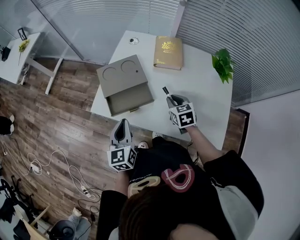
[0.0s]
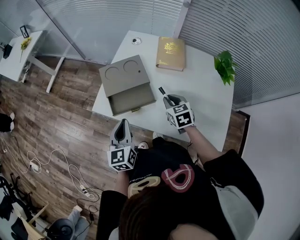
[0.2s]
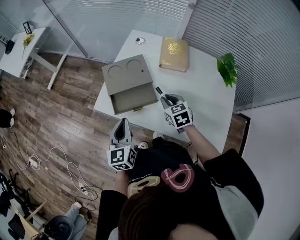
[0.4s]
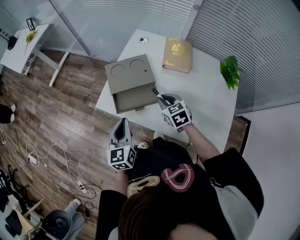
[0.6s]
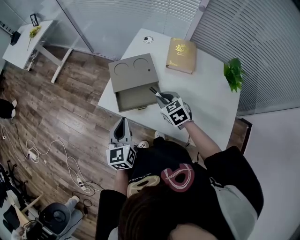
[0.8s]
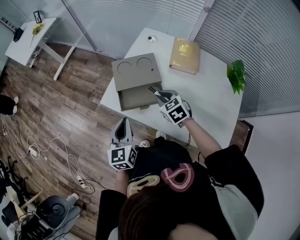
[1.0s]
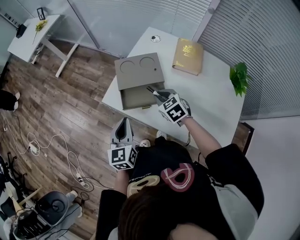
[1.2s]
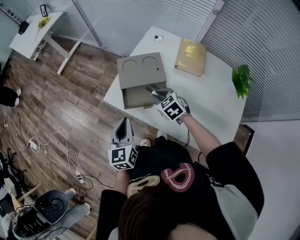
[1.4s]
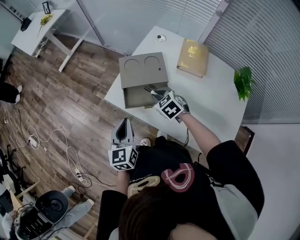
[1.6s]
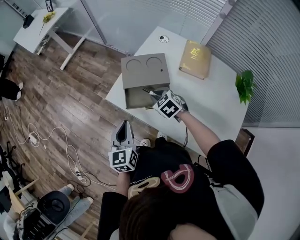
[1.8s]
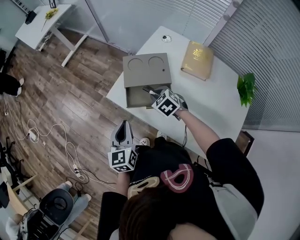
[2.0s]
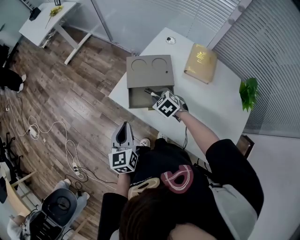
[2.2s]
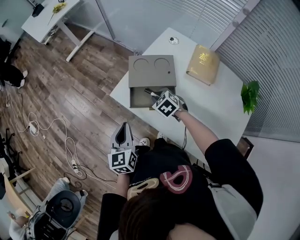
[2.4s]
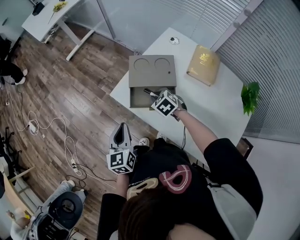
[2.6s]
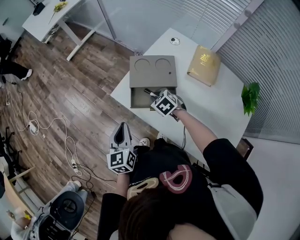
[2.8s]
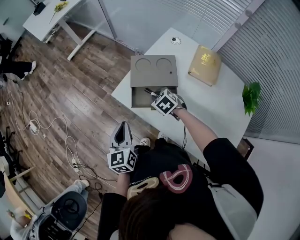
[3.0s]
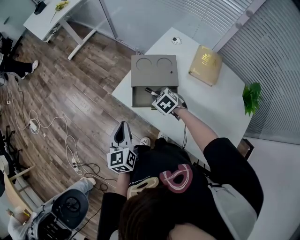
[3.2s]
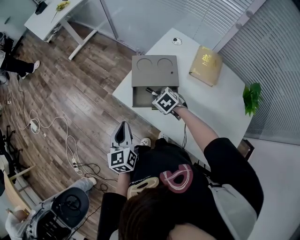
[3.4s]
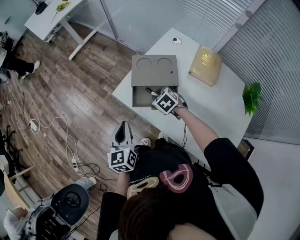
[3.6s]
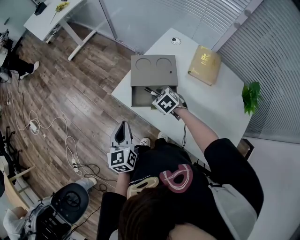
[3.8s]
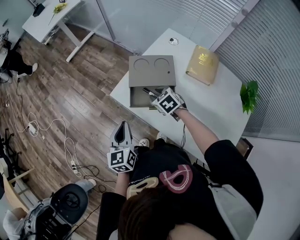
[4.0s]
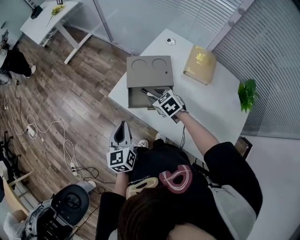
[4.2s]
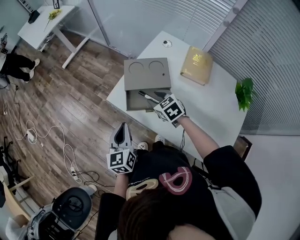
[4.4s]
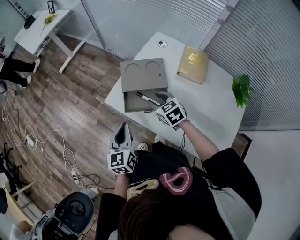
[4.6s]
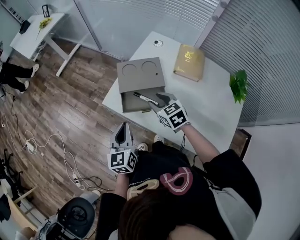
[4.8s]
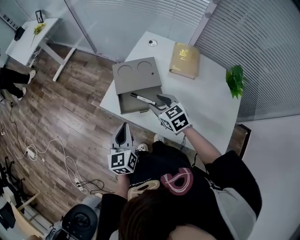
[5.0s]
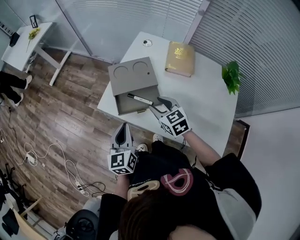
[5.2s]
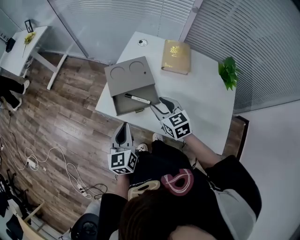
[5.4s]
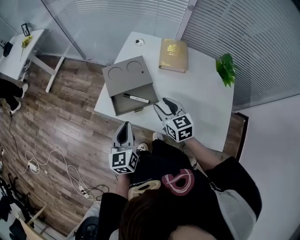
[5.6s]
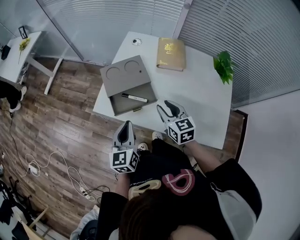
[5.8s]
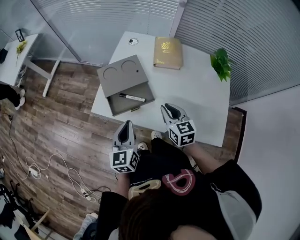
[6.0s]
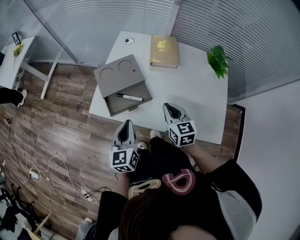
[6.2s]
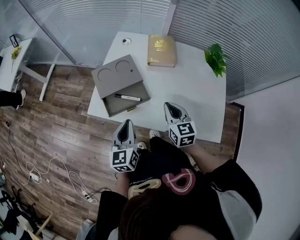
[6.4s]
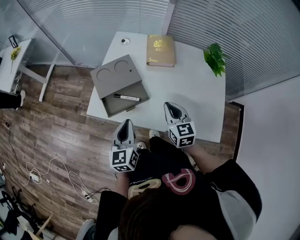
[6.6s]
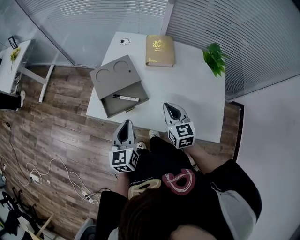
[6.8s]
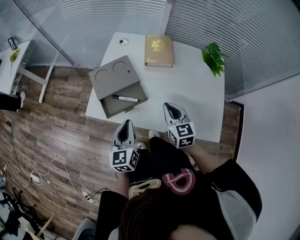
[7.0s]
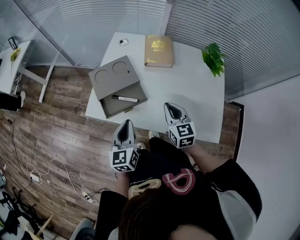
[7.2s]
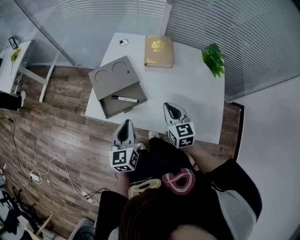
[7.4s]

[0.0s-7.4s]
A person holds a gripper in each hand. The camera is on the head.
0.0s to 1.4s: The left gripper is displaced to the left by some 5 cm, while the right gripper goes approximately 15 cm to the left, and turns by some 30 degrees.
1.4s to 3.0s: The right gripper goes about 5 cm downward.
3.0s to 4.4s: The right gripper heads upward, covering roughly 5 cm, and opens its fingers.
4.4s to 6.0s: The left gripper moves some 5 cm, and turns by some 20 degrees. The right gripper ends up about 15 cm from where it was, rotates some 40 degrees, and closes.
6.0s to 7.4s: There are only small adjustments of the grippers.

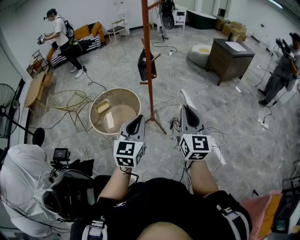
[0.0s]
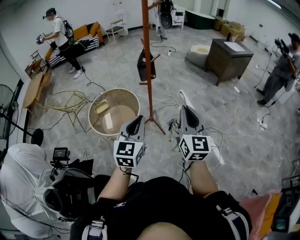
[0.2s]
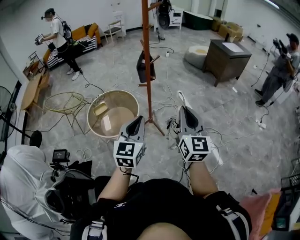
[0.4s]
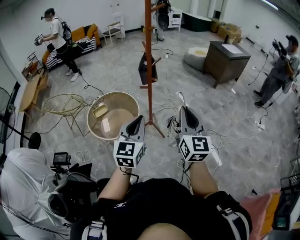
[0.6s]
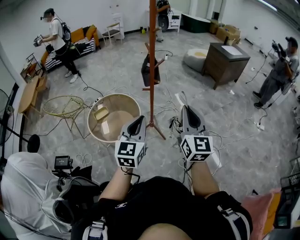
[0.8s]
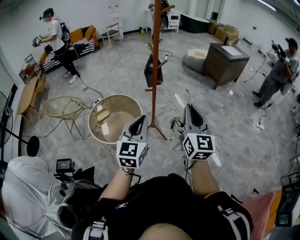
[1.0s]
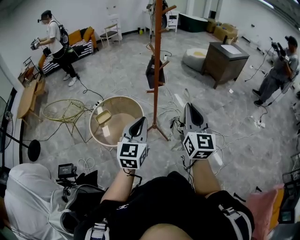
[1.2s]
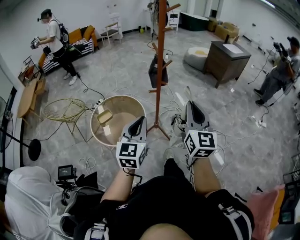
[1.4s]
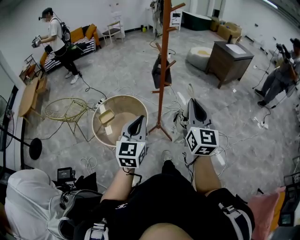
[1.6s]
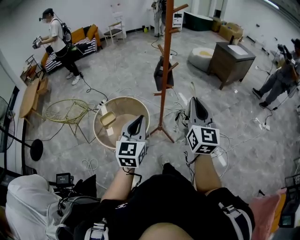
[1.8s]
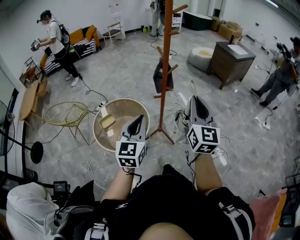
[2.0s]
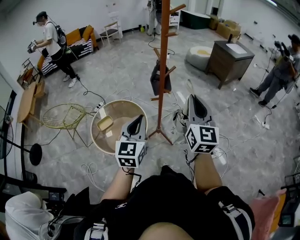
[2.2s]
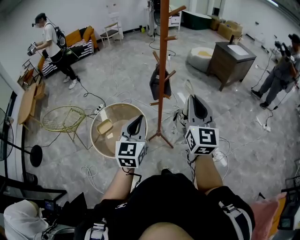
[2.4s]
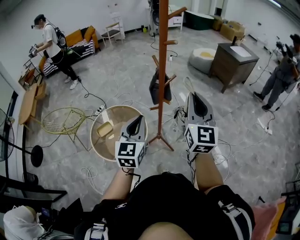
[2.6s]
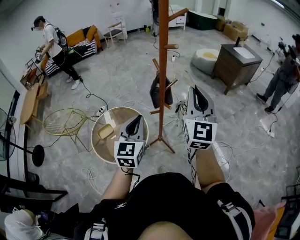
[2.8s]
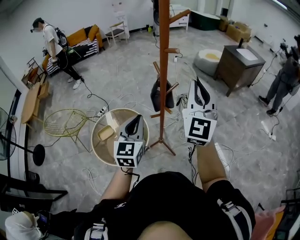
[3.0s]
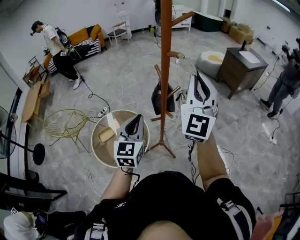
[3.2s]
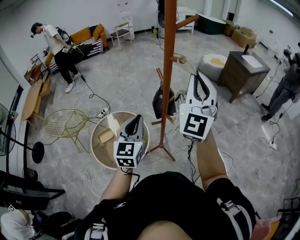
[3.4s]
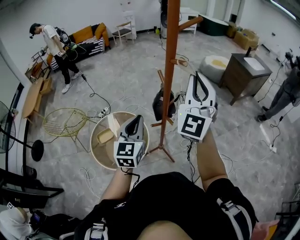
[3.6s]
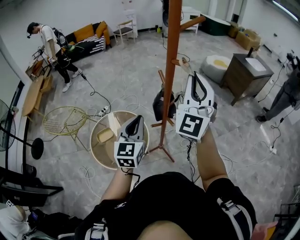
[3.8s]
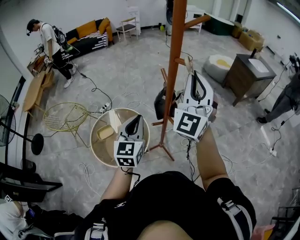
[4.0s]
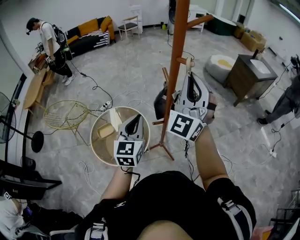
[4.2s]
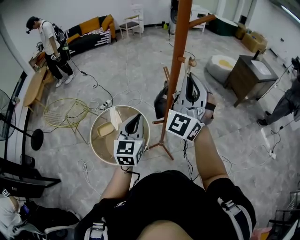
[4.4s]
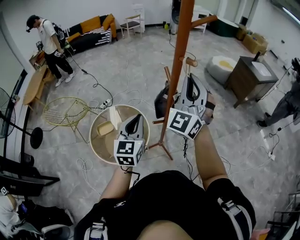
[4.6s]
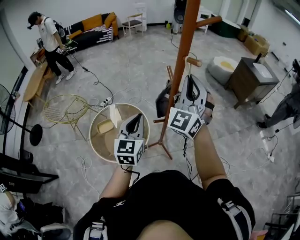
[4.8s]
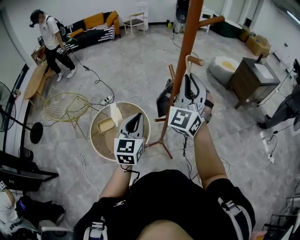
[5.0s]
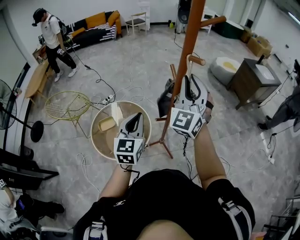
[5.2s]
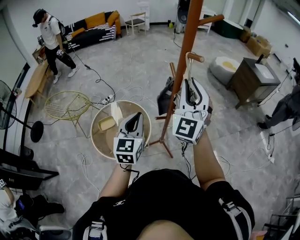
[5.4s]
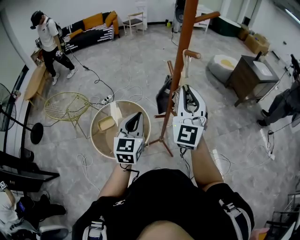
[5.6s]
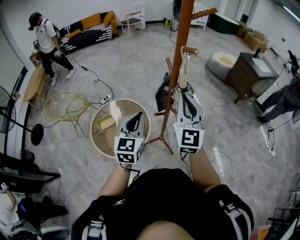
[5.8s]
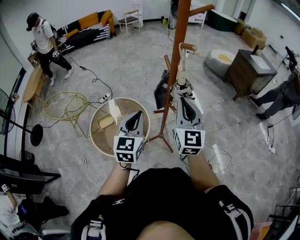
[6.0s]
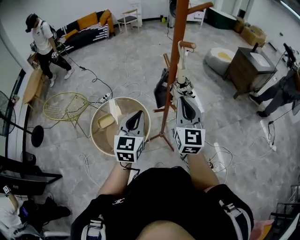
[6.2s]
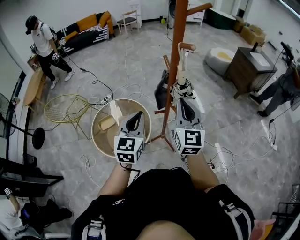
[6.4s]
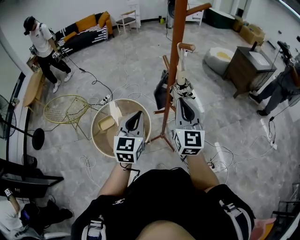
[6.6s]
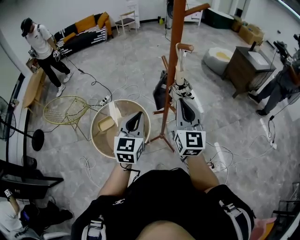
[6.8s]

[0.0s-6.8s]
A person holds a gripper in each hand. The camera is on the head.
0.0s to 1.4s: Both grippers move to the left and forward, some 20 cm.
1.4s to 2.8s: Both grippers travel together forward, some 30 cm.
2.8s to 4.0s: The two grippers go approximately 15 cm forward. The right gripper rotates roughly 20 degrees.
4.0s to 5.4s: The right gripper changes place by about 5 cm.
5.4s to 6.8s: The right gripper shifts approximately 10 cm downward and backward, and swivels roughly 30 degrees.

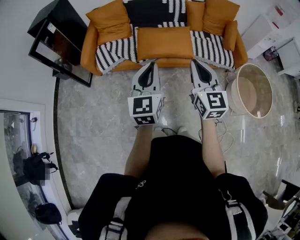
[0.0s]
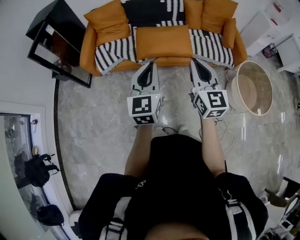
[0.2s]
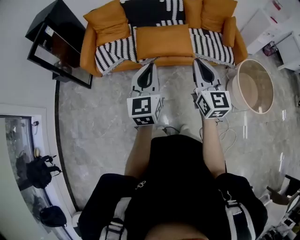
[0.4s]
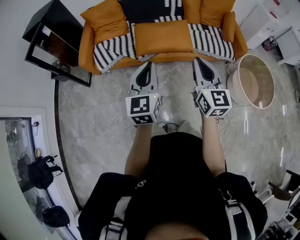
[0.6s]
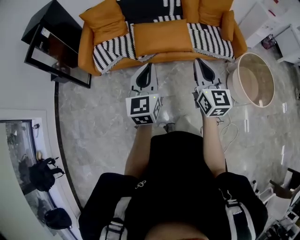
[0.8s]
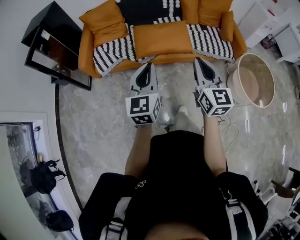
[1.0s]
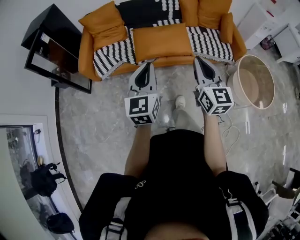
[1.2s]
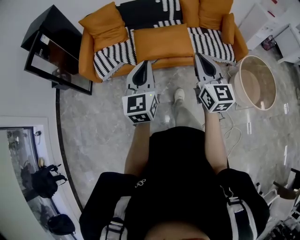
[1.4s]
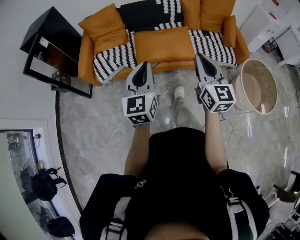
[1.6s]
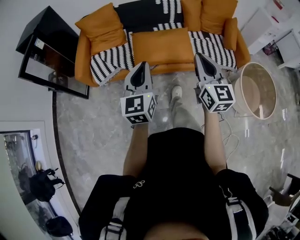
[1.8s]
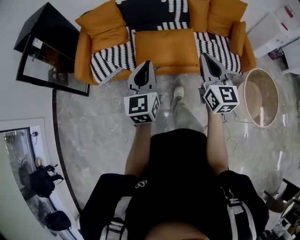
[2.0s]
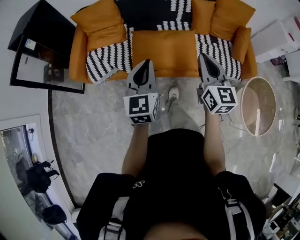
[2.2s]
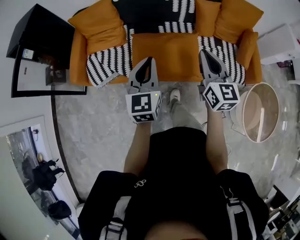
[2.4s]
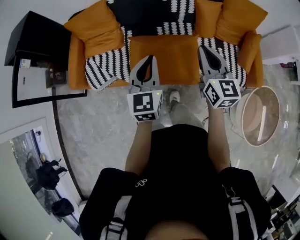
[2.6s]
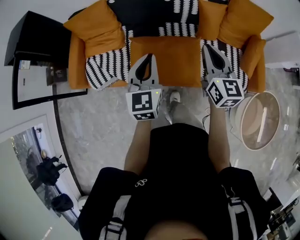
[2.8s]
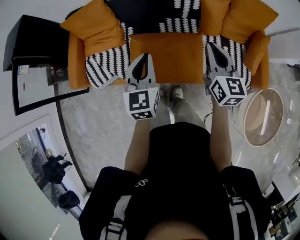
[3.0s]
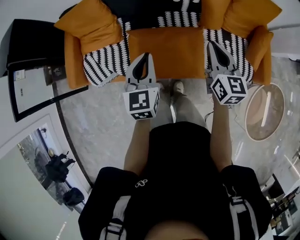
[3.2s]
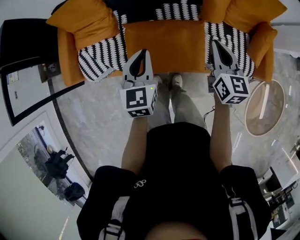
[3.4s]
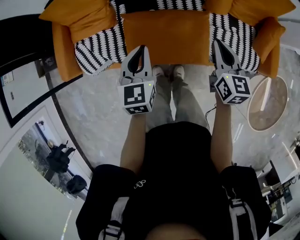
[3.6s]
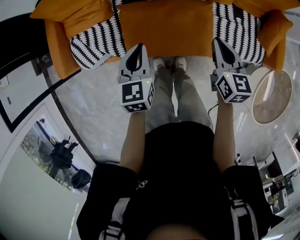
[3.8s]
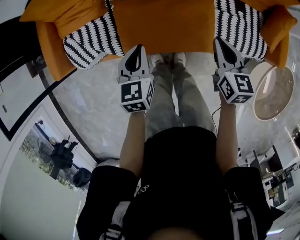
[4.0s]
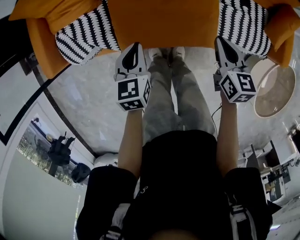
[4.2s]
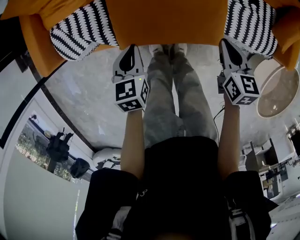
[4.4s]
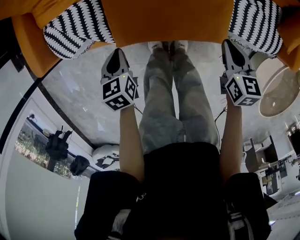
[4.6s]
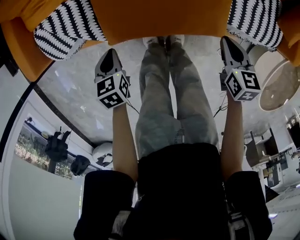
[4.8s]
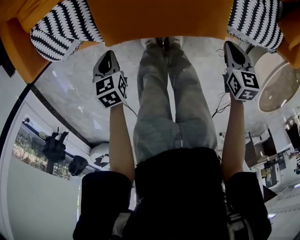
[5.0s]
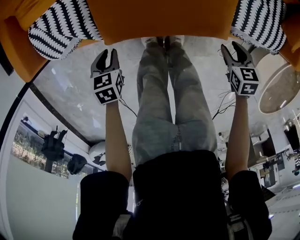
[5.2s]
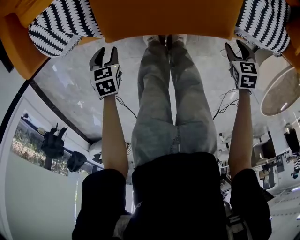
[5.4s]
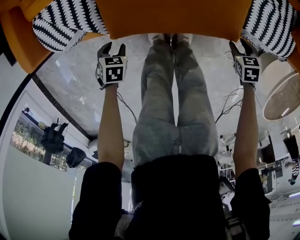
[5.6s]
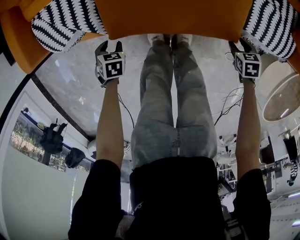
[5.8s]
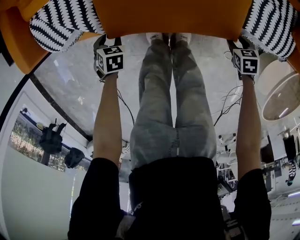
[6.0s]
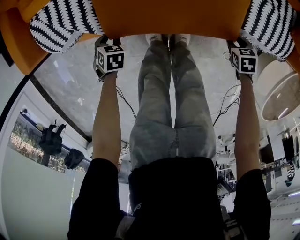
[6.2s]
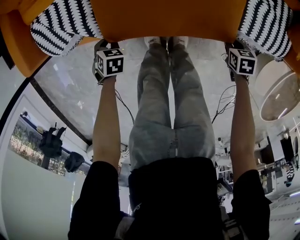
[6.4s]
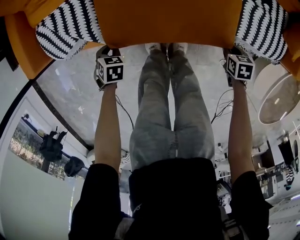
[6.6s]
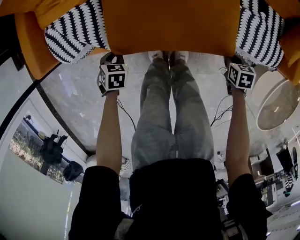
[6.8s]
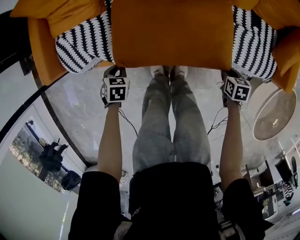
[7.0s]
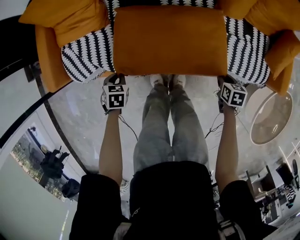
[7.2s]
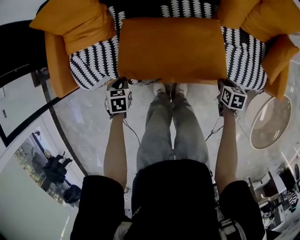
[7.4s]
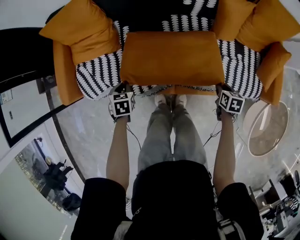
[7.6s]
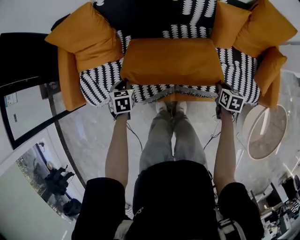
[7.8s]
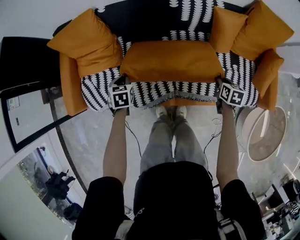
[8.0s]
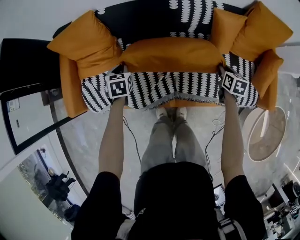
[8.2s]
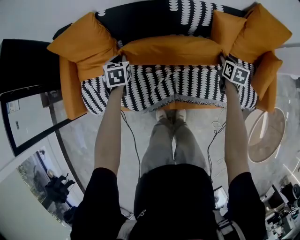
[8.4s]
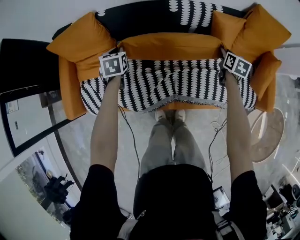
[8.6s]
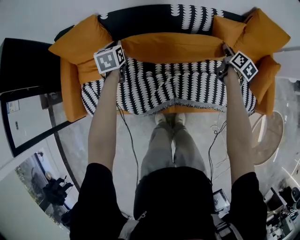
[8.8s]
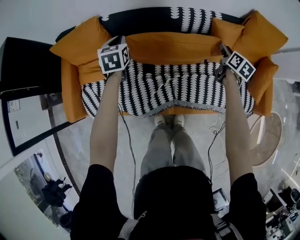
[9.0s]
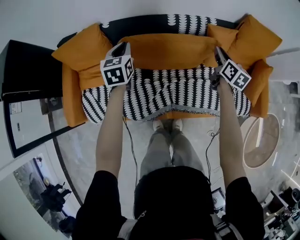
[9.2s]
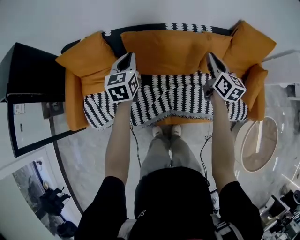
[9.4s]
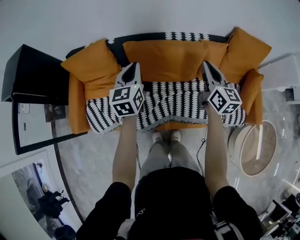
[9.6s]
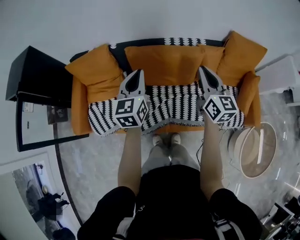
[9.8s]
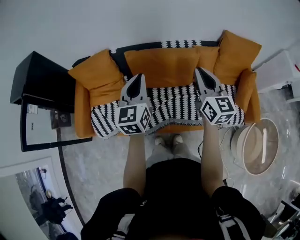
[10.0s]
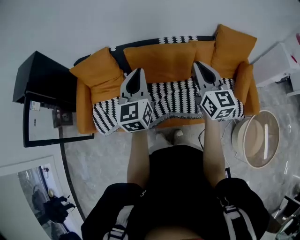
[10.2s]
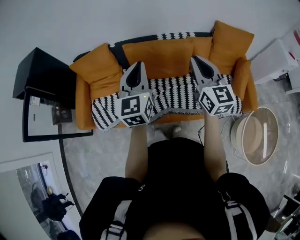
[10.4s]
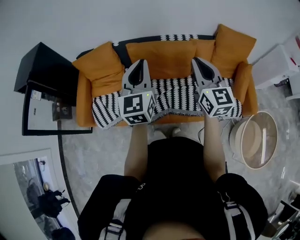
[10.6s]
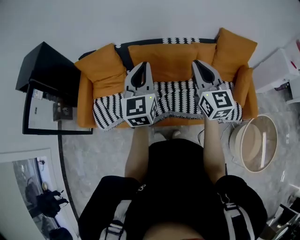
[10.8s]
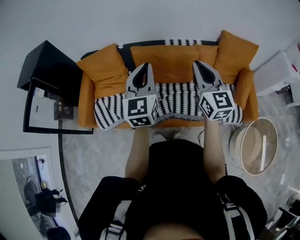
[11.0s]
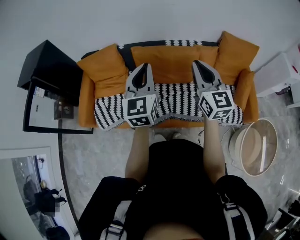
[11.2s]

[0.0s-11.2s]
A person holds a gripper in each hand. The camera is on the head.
0.0s to 1.6s: The two grippers go roughly 5 cm forward.
1.6s to 3.2s: The two grippers travel together, forward, about 50 cm. The left gripper turns by about 20 degrees.
3.2s to 4.8s: The left gripper travels downward and to the left by some 40 cm, and tips its fingers downward by some 40 degrees. The right gripper shifts roughly 35 cm downward and backward, and points its fingers some 30 degrees further downward.
4.8s to 6.4s: Both grippers travel together downward, some 15 cm. The right gripper turns by roughly 30 degrees, and opens and closes again; the left gripper rotates approximately 30 degrees, and opens and closes again.
6.4s to 8.0s: The grippers both shift upward by roughly 25 cm. The right gripper turns by about 30 degrees. The left gripper rotates some 20 degrees.
8.0s to 9.6s: Both grippers move upward, roughly 30 cm. The left gripper tips its fingers upward by about 40 degrees. The right gripper tips its fingers upward by roughly 50 degrees.
9.6s to 11.2s: The right gripper travels upward and backward by some 20 cm, and swivels some 20 degrees. Meanwhile the left gripper heads backward and upward, covering roughly 25 cm.
